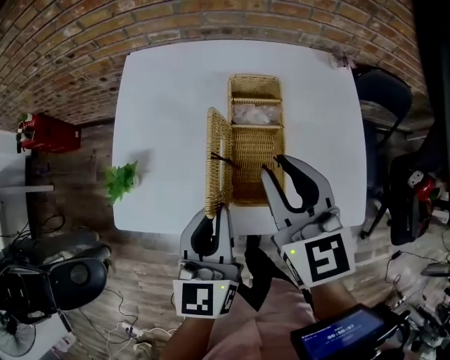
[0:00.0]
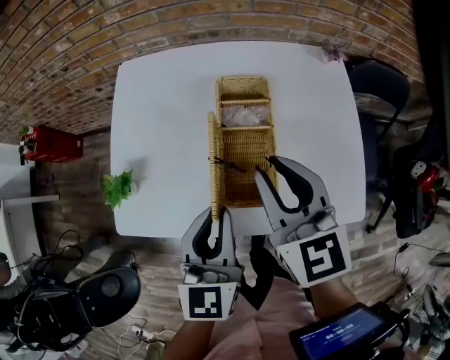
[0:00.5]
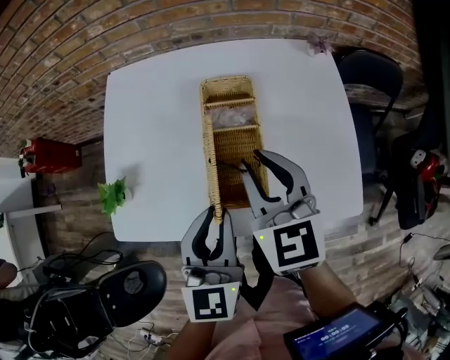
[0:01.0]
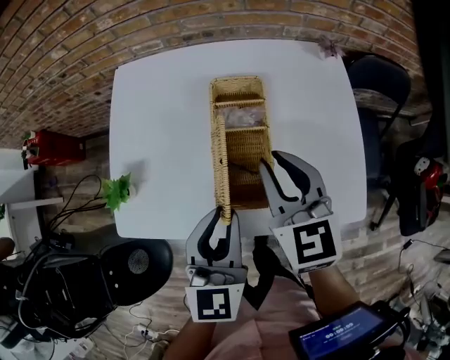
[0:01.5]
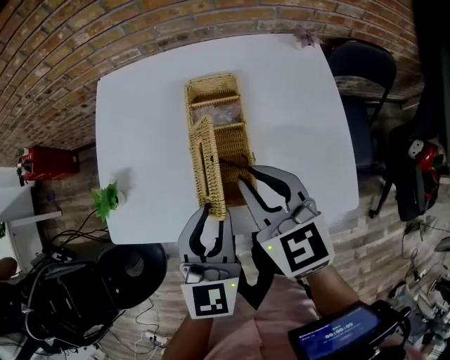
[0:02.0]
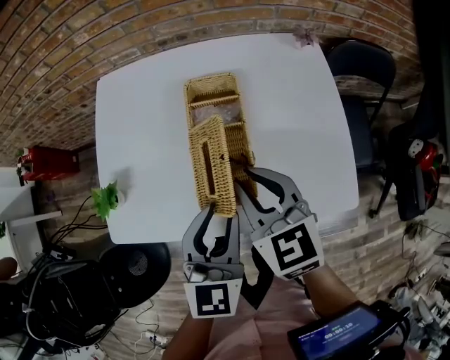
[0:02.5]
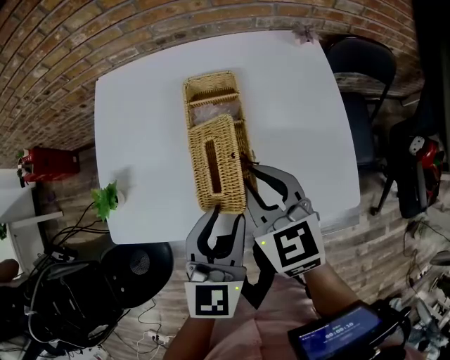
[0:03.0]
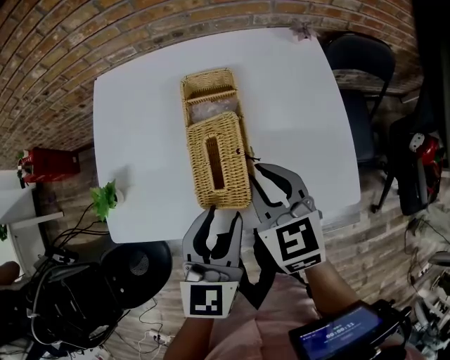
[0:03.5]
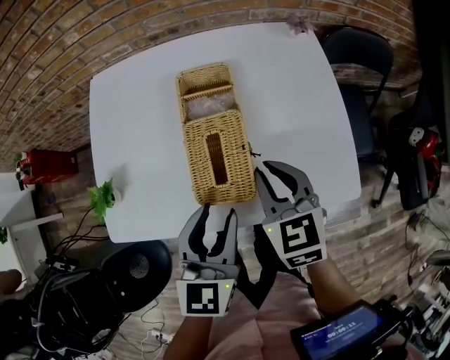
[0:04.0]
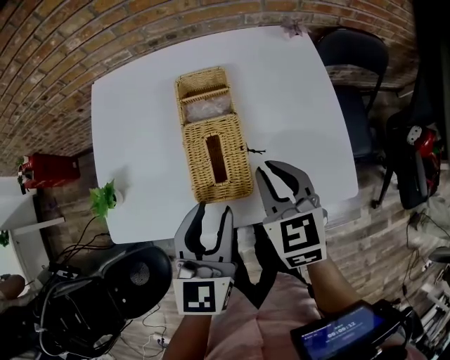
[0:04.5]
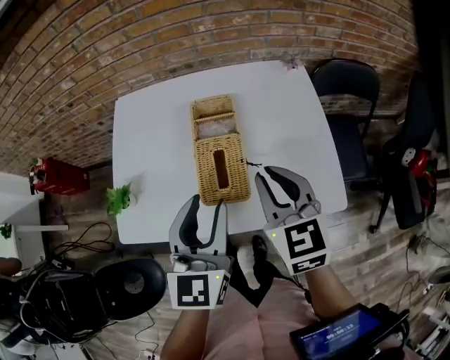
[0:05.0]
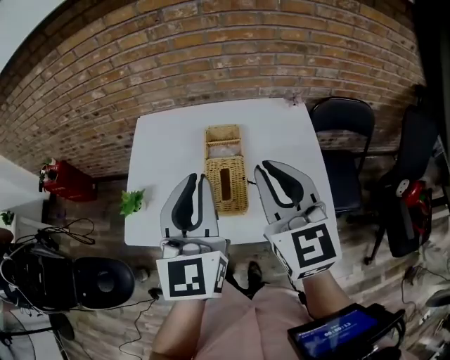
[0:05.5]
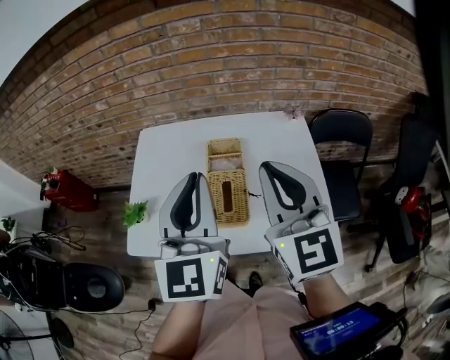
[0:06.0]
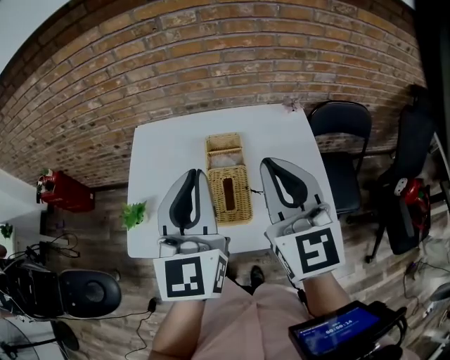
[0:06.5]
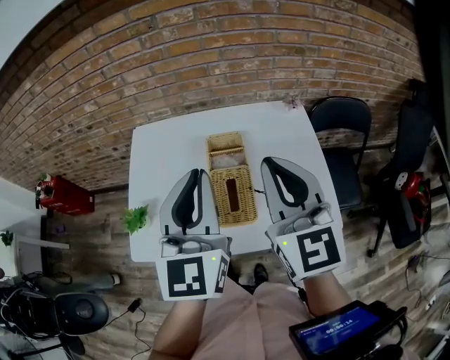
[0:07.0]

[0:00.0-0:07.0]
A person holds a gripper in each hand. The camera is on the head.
0:00.0 to 0:02.0: The left gripper shifts about 5 cm to the right. The right gripper moves roughly 5 cm.
0:02.0 to 0:03.5: The grippers move only a little.
0:03.5 to 0:05.0: Both grippers move upward, some 10 cm.
0:05.0 to 0:07.0: The right gripper goes approximately 15 cm upward, and rotates some 20 degrees. The left gripper heads upward and forward, covering some 15 cm, and closes its fingers.

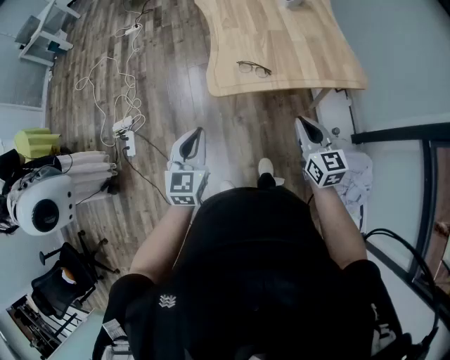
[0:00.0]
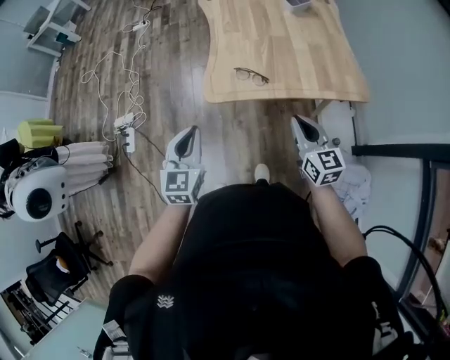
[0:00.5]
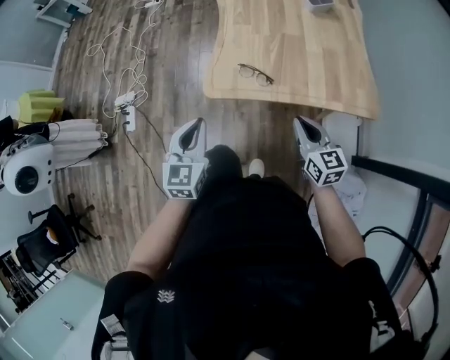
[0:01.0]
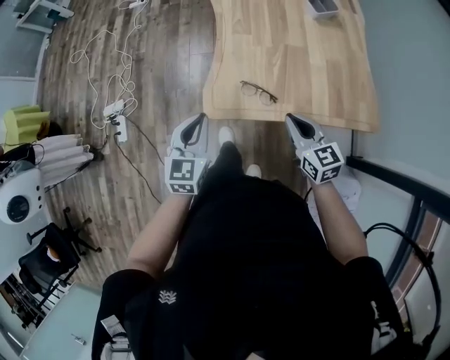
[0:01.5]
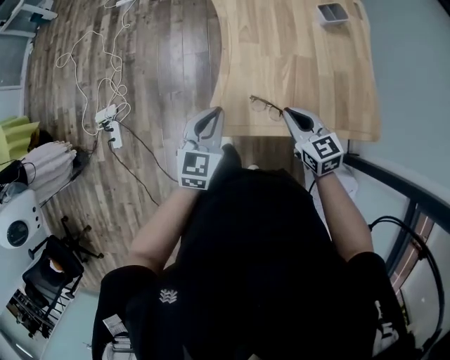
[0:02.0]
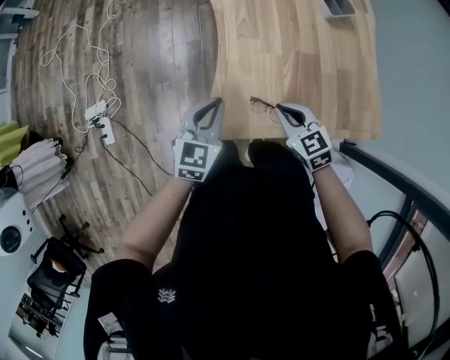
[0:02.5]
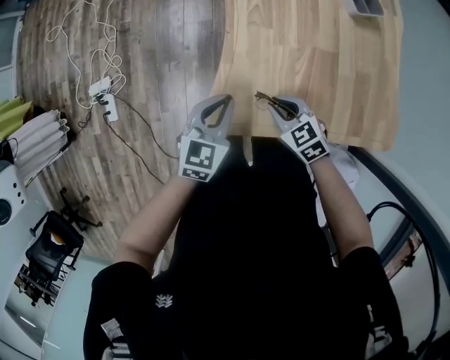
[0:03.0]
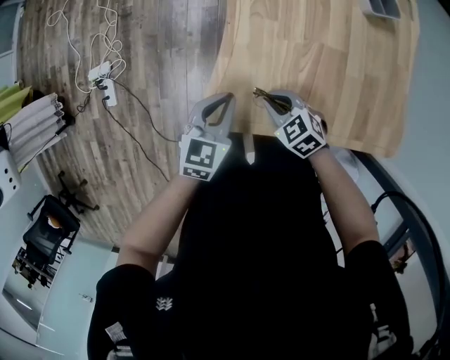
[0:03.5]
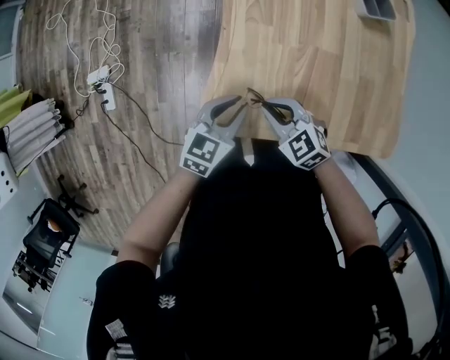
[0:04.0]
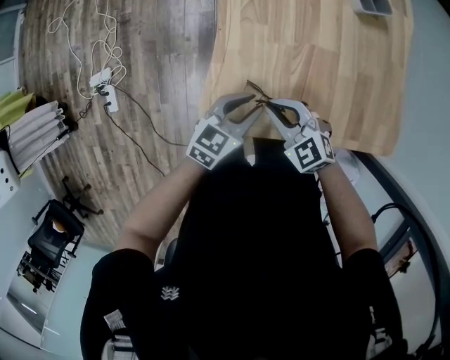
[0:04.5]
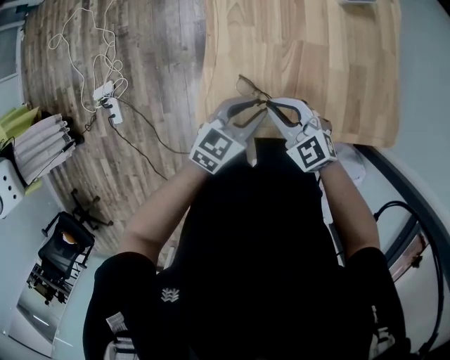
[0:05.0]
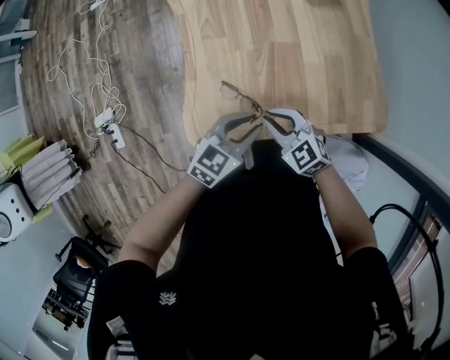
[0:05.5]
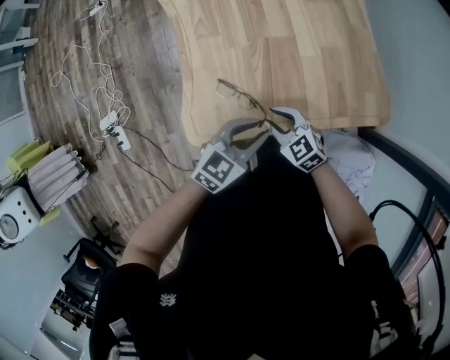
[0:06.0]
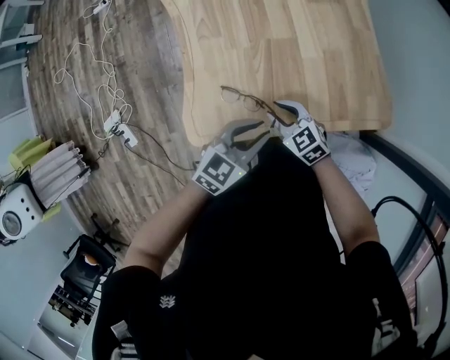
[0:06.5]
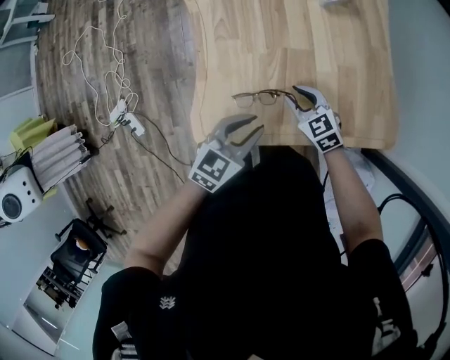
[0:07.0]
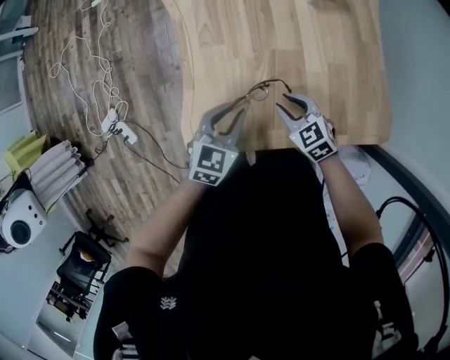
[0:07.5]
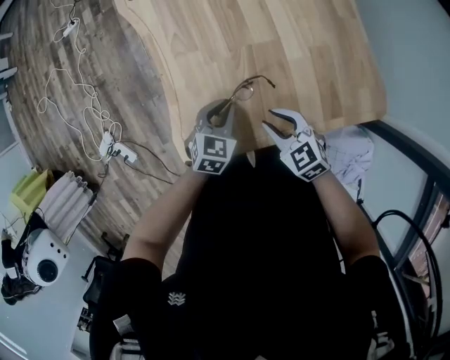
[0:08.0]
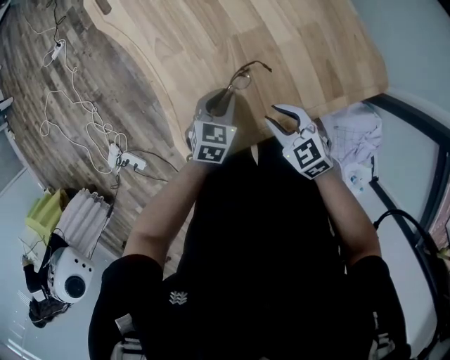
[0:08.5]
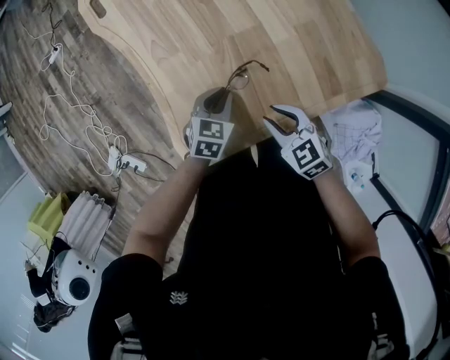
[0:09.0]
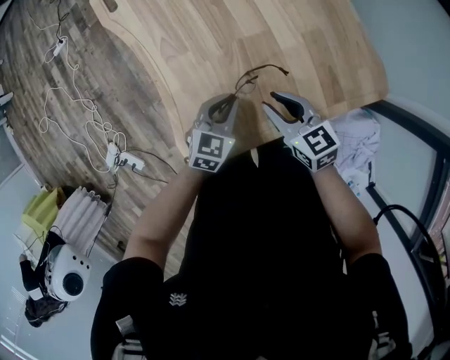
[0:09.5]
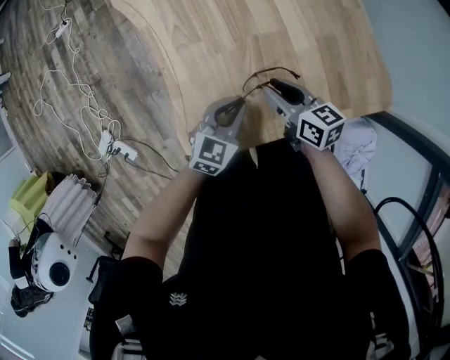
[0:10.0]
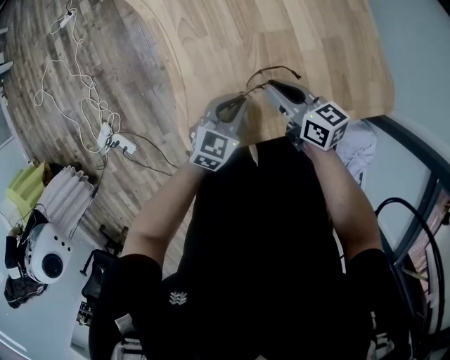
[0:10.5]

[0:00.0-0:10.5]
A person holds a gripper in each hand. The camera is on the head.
0:00.0 to 0:02.0: Both grippers travel together forward, some 30 cm. The right gripper changes its angle by roughly 30 degrees.
0:02.0 to 0:04.0: The right gripper goes approximately 15 cm downward and forward, and rotates about 30 degrees. The left gripper moves downward and to the right, approximately 15 cm.
0:04.0 to 0:06.5: The left gripper travels to the right and backward by about 15 cm, and rotates about 30 degrees. Meanwhile the right gripper moves to the right, about 15 cm, turns by some 20 degrees, and opens its fingers.
0:06.5 to 0:08.5: The right gripper moves roughly 10 cm forward and comes back. The left gripper goes approximately 20 cm downward and forward, and swivels some 20 degrees.
0:08.5 to 0:10.5: The right gripper travels forward by some 10 cm, and swivels about 40 degrees.

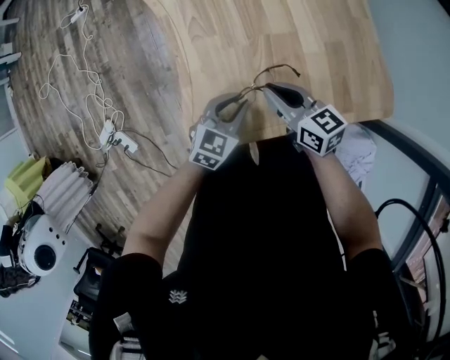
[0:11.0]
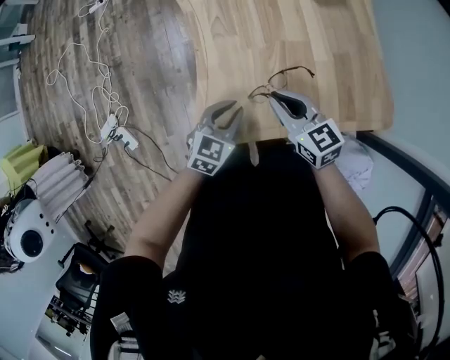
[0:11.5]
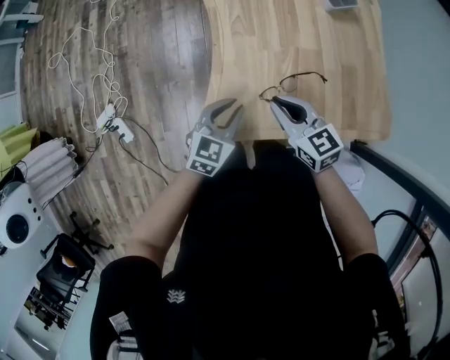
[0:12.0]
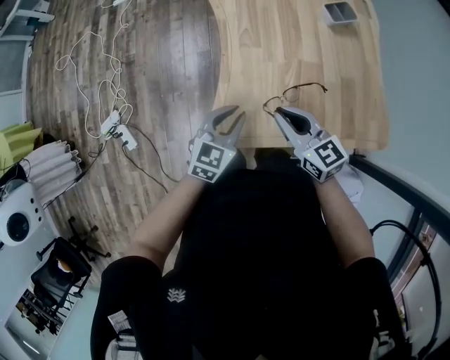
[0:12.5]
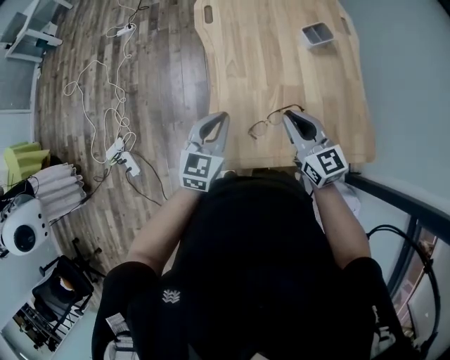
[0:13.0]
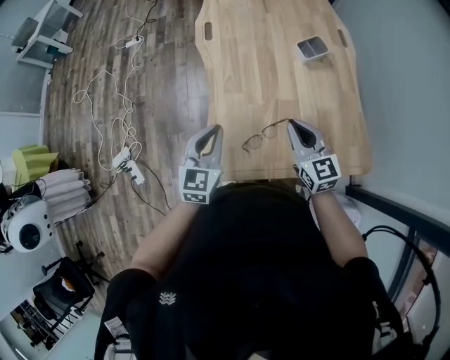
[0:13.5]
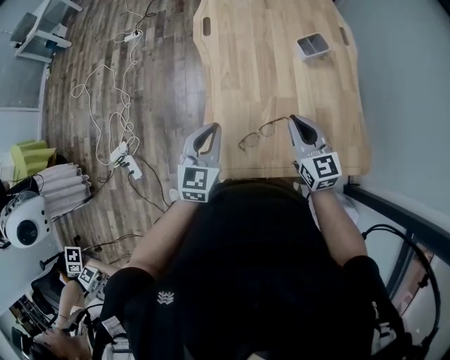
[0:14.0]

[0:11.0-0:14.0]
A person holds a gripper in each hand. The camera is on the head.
0:11.0 to 0:12.5: The left gripper goes some 15 cm to the left and upward. The right gripper shifts roughly 15 cm to the left, upward and backward, and rotates roughly 20 degrees.
0:12.5 to 0:14.0: The left gripper goes about 10 cm upward and forward. The right gripper goes some 15 cm to the right, forward and upward.

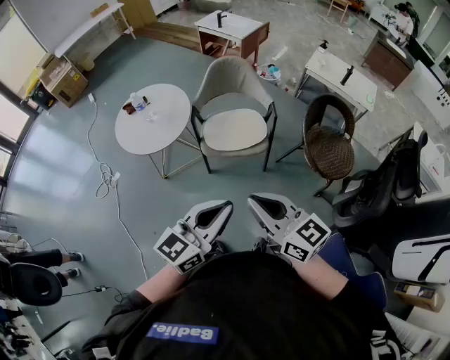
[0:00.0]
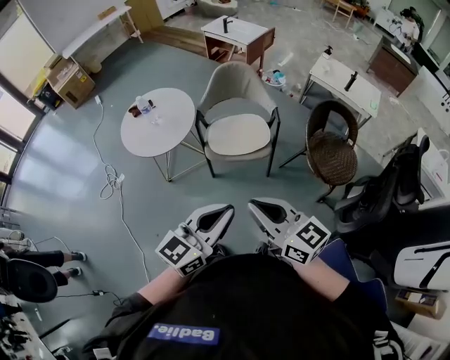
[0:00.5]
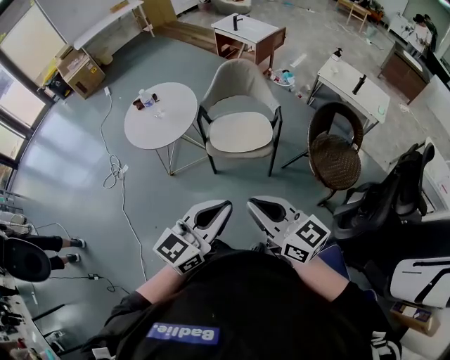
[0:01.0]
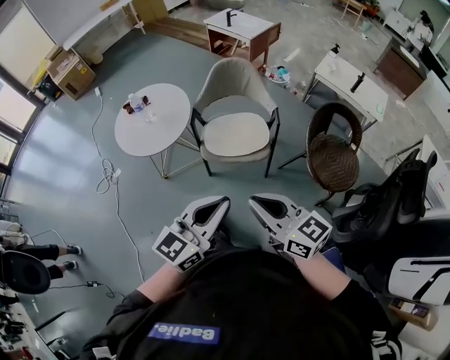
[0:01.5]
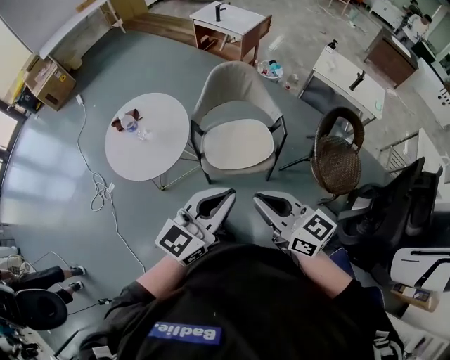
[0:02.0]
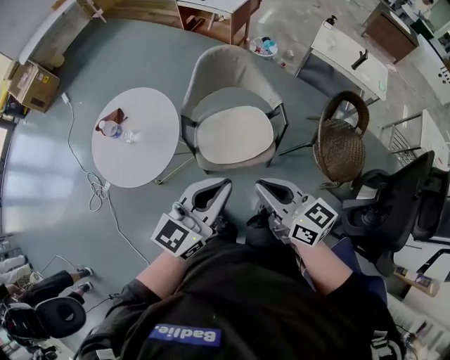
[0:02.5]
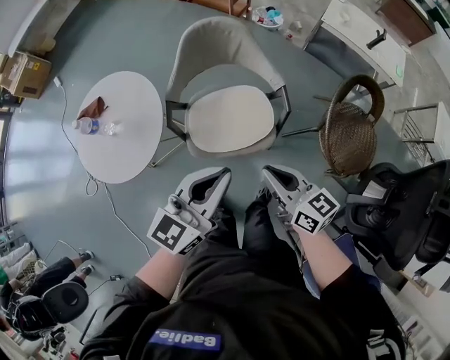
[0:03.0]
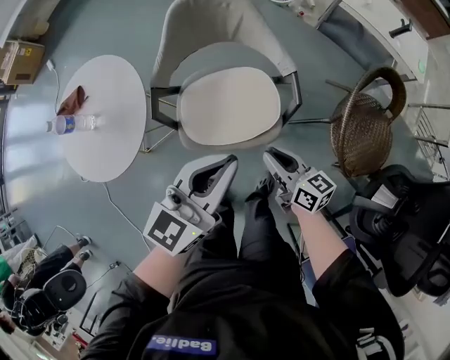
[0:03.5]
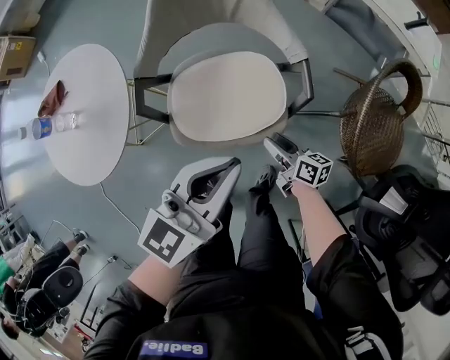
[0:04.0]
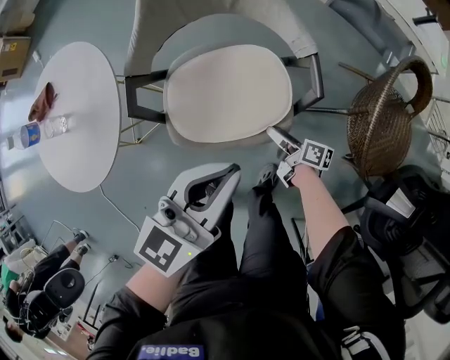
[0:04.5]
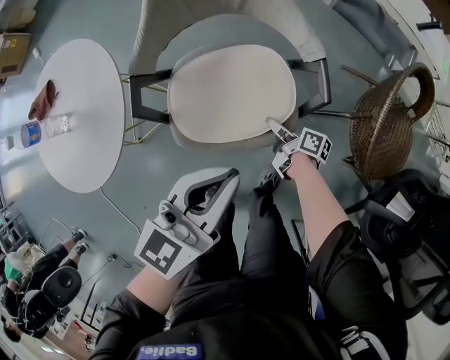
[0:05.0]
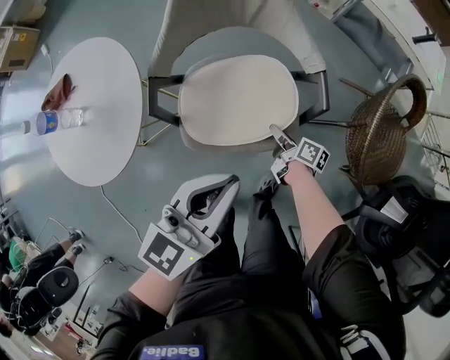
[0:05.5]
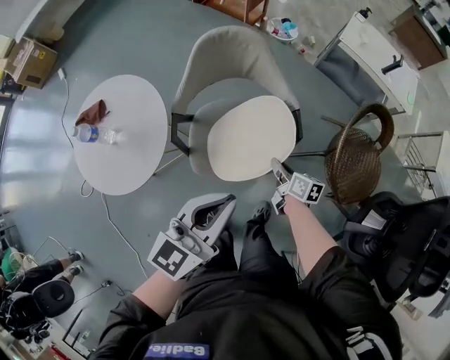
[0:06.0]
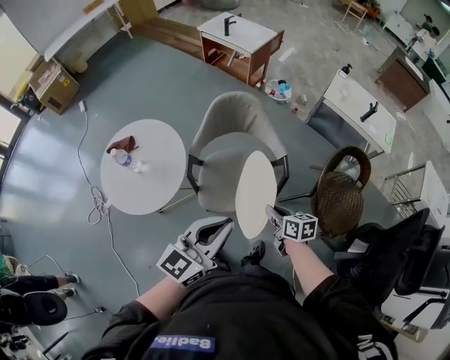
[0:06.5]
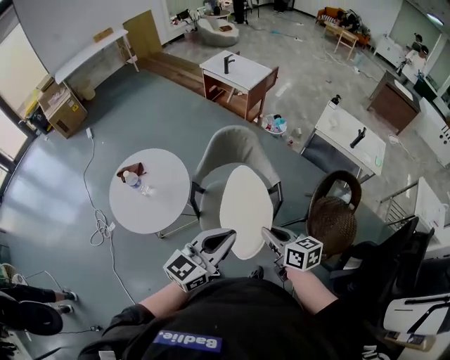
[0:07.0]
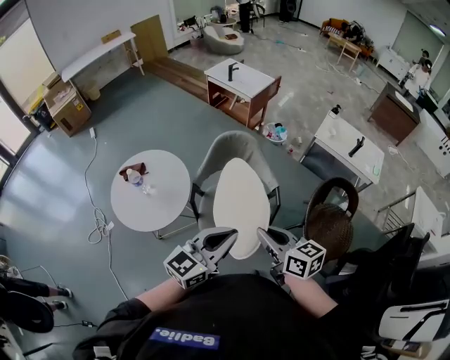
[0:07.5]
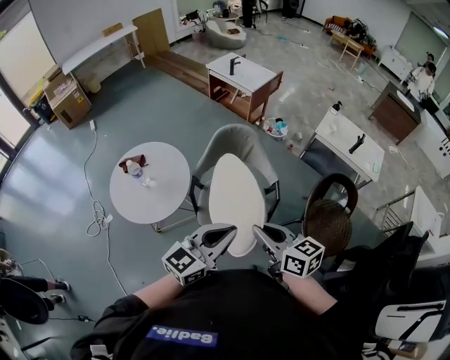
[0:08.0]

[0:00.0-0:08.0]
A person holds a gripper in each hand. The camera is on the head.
0:00.0 to 0:02.0: The grippers both shift forward by approximately 20 cm.
0:02.0 to 0:04.0: The left gripper is displaced downward and forward by some 30 cm; the right gripper is displaced downward and forward by roughly 50 cm, swivels about 40 degrees, and opens up.
0:04.0 to 0:06.0: The two grippers go roughly 10 cm upward. The right gripper closes.
0:06.0 to 0:08.0: The right gripper shifts about 40 cm upward, and changes its angle by approximately 40 degrees; the left gripper is displaced upward and backward by about 15 cm.
